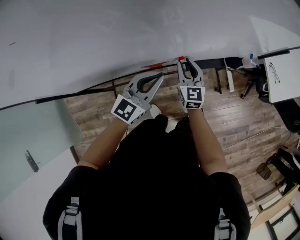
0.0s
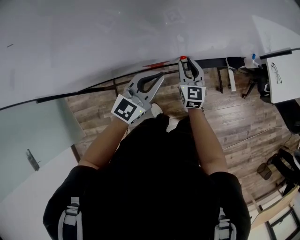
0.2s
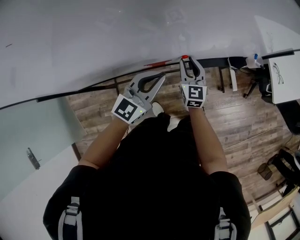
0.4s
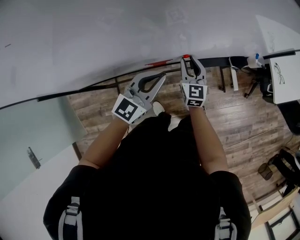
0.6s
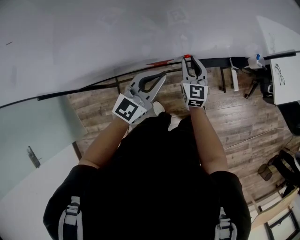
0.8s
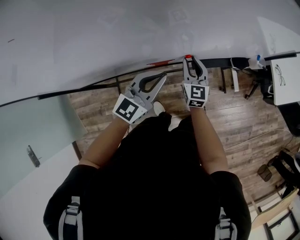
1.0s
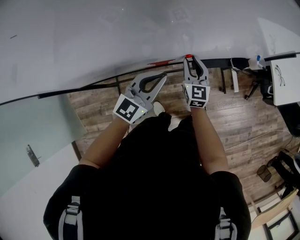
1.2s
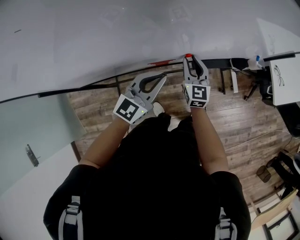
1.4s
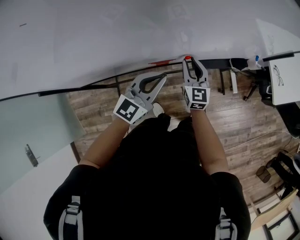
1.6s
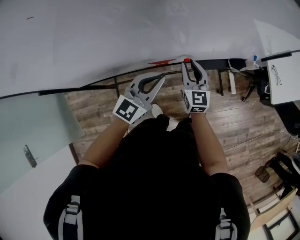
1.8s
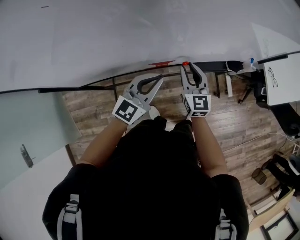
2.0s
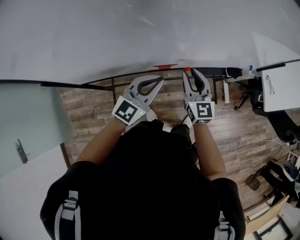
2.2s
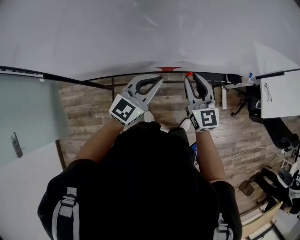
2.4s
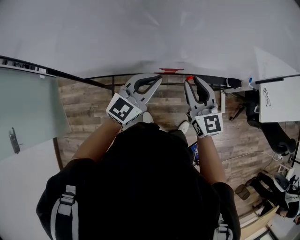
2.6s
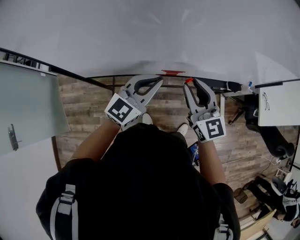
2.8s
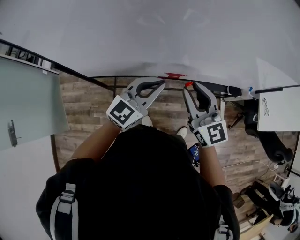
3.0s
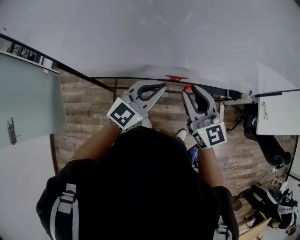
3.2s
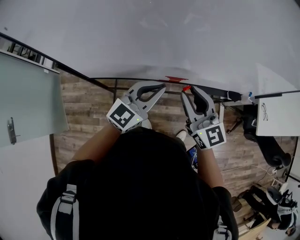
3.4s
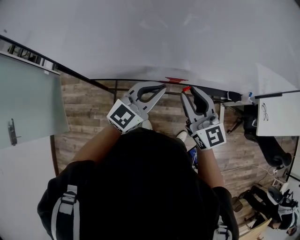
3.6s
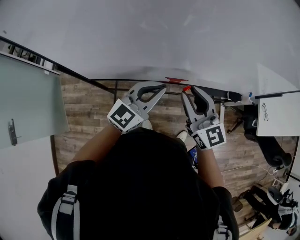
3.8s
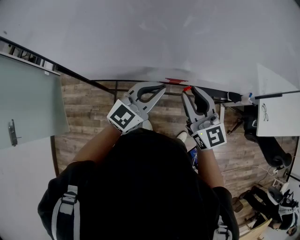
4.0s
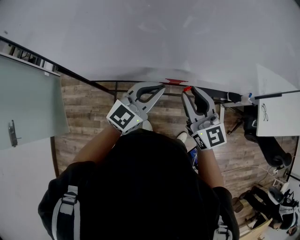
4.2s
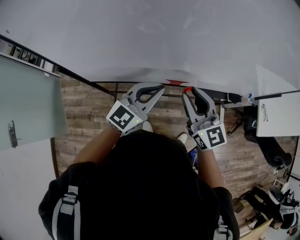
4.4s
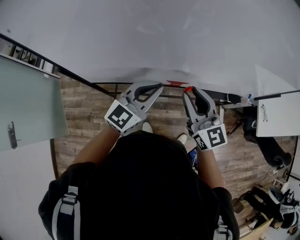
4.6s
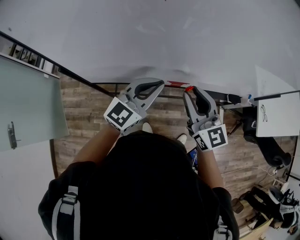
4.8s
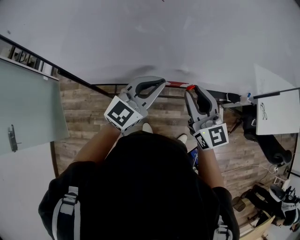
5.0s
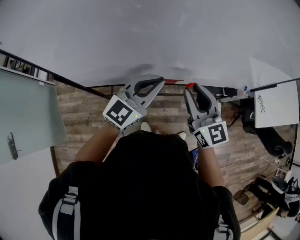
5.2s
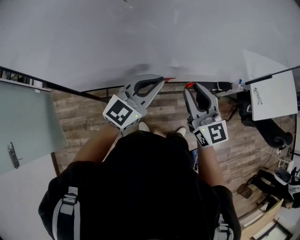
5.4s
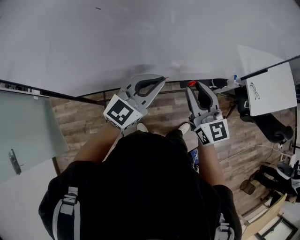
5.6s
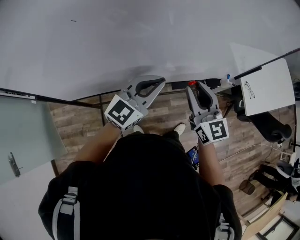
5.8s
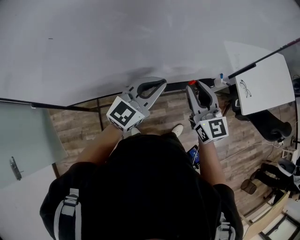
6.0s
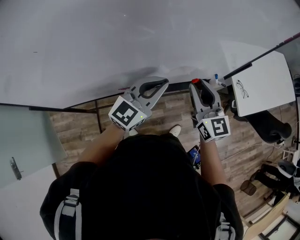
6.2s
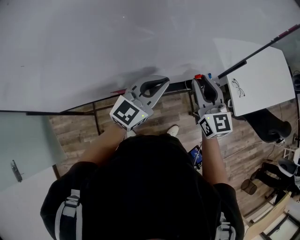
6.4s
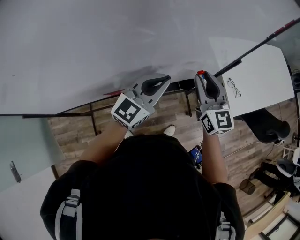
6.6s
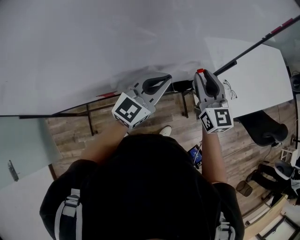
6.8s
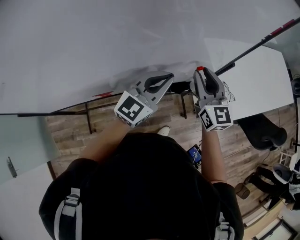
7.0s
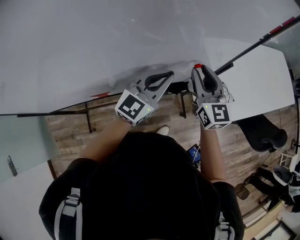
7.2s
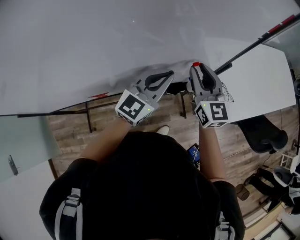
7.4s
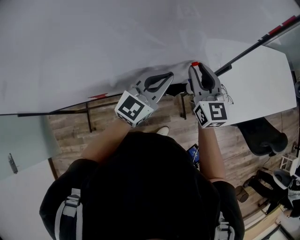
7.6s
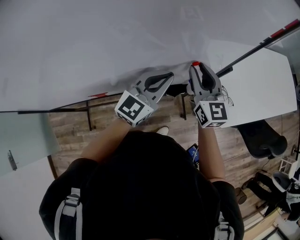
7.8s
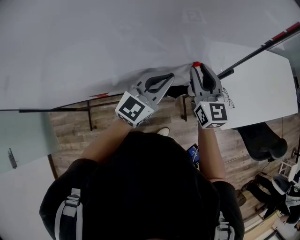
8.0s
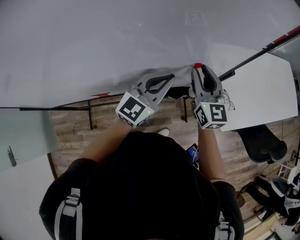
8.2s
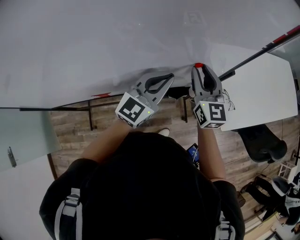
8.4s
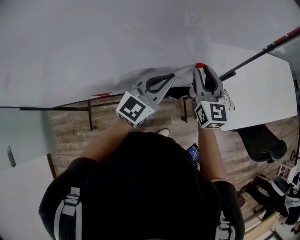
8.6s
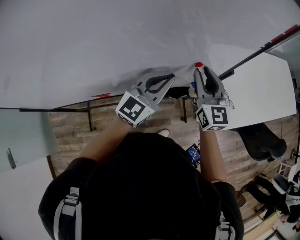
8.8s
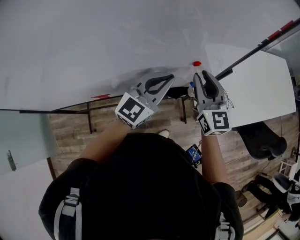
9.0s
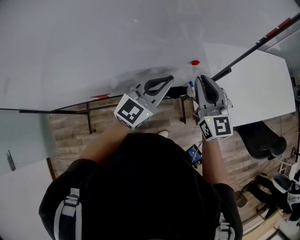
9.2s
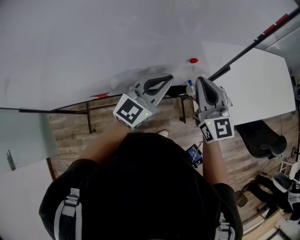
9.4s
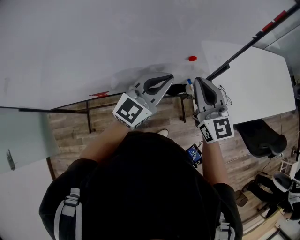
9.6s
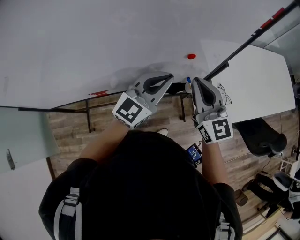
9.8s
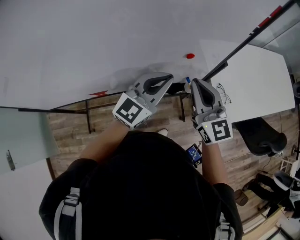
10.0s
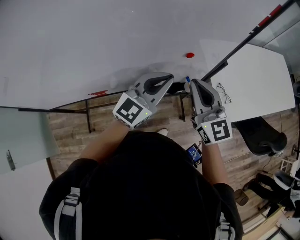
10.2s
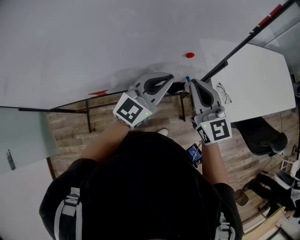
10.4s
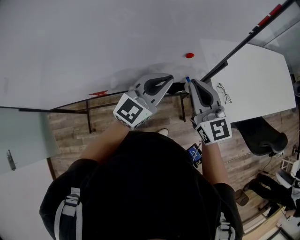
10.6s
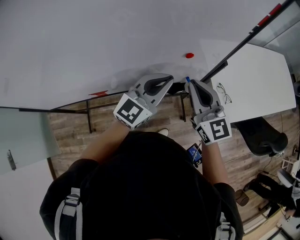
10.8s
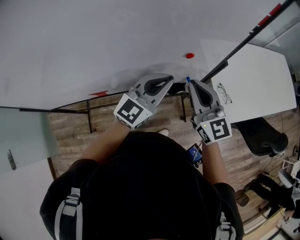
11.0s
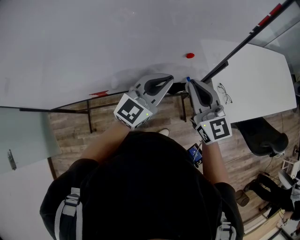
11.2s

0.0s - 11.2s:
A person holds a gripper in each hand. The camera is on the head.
0.0s - 1.6s: The grippers stay close to where they were, moving slightly.
1.6s - 3.2s: The left gripper shifts approximately 15 cm upward, to the left and backward. The right gripper goes some 25 cm upward, backward and to the left, and changes its angle by some 30 degrees.
3.2s - 4.8s: There are only small adjustments of the grippers.
4.8s - 6.4s: The right gripper goes about 35 cm to the right and forward, and rotates about 20 degrees; the left gripper goes roughly 30 cm to the right.
6.4s - 8.0s: The right gripper shifts about 20 cm forward and to the right. Meanwhile the left gripper moves to the right and forward, about 20 cm.
8.0s - 9.6s: The right gripper heads backward, covering some 10 cm, and closes.
9.6s - 11.2s: The grippers stay close to where they were, moving slightly.

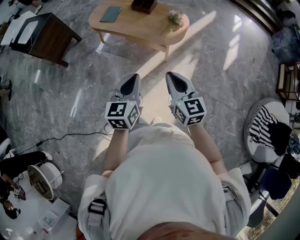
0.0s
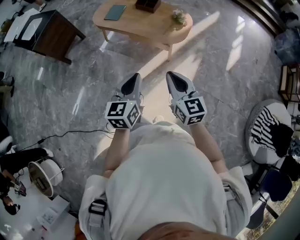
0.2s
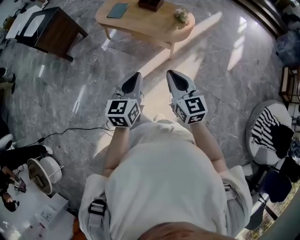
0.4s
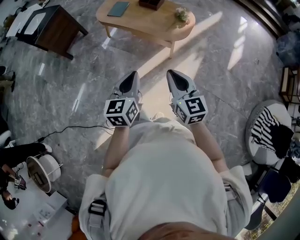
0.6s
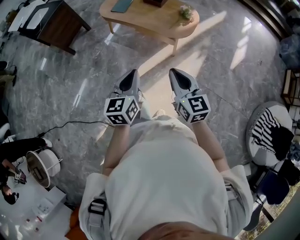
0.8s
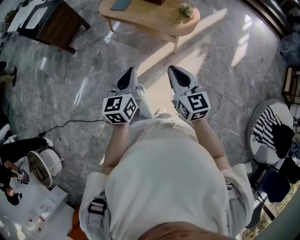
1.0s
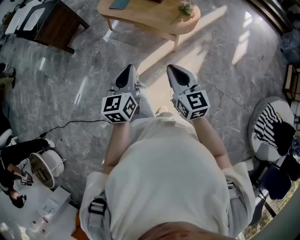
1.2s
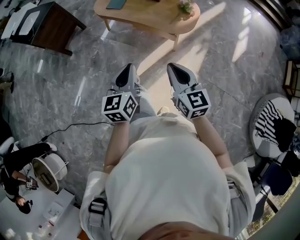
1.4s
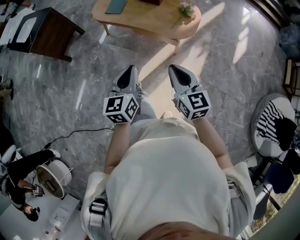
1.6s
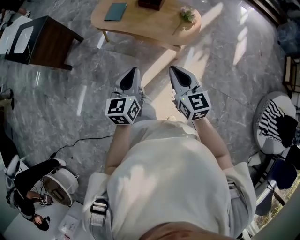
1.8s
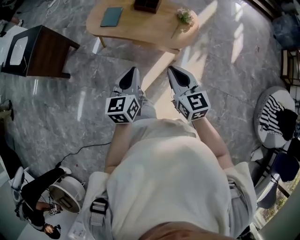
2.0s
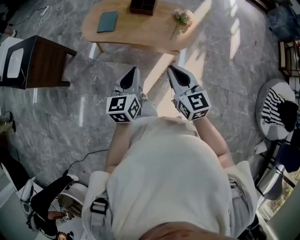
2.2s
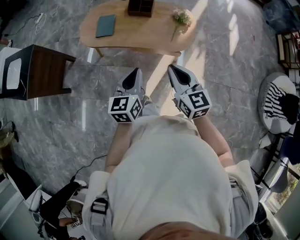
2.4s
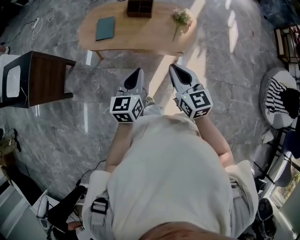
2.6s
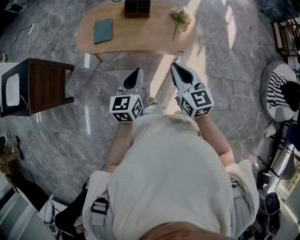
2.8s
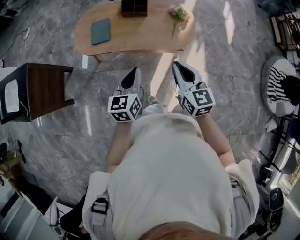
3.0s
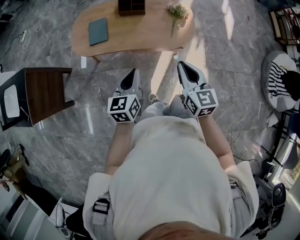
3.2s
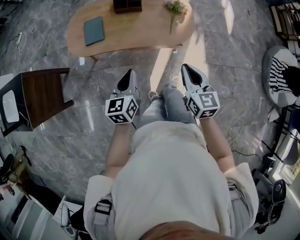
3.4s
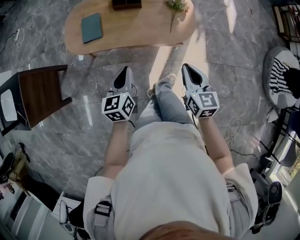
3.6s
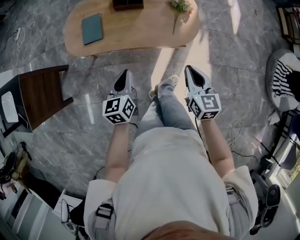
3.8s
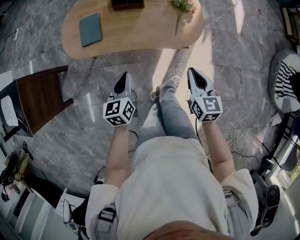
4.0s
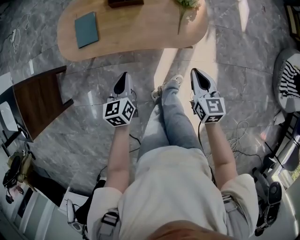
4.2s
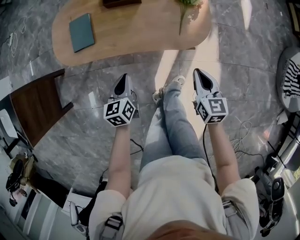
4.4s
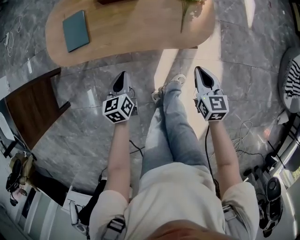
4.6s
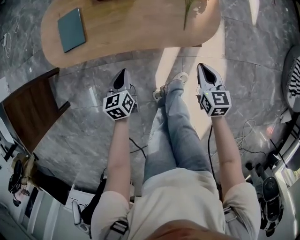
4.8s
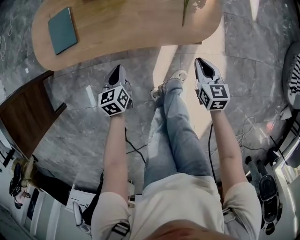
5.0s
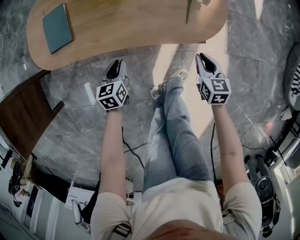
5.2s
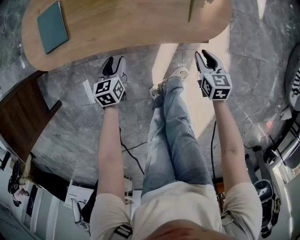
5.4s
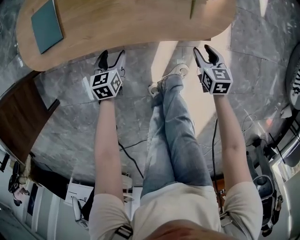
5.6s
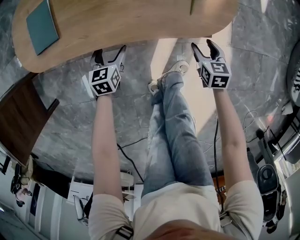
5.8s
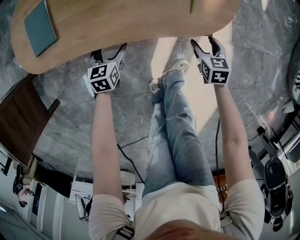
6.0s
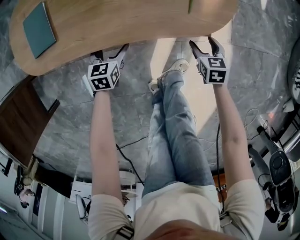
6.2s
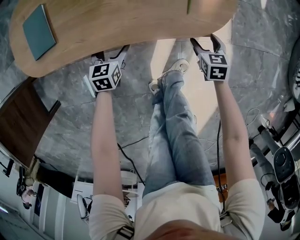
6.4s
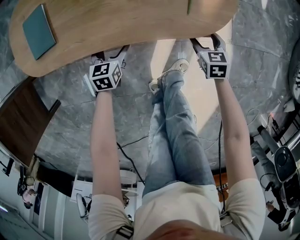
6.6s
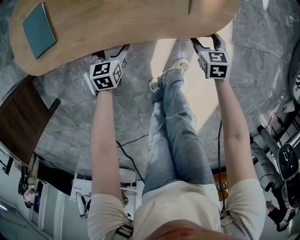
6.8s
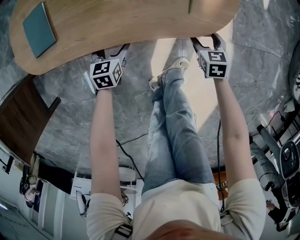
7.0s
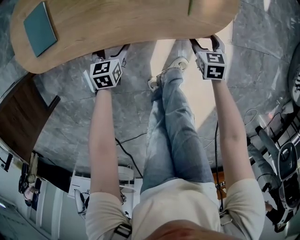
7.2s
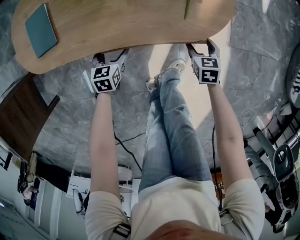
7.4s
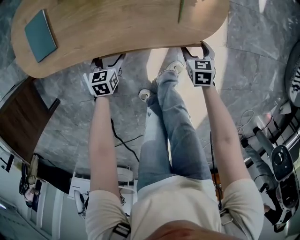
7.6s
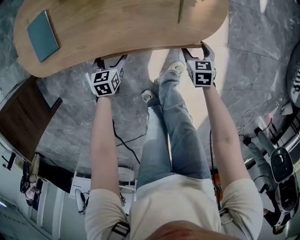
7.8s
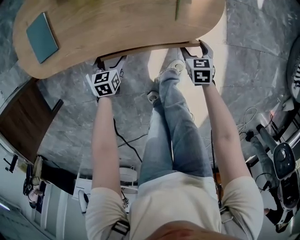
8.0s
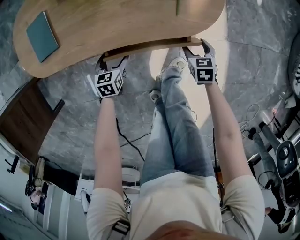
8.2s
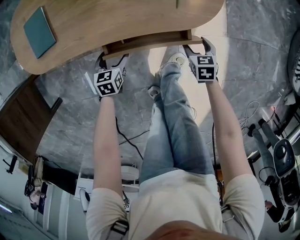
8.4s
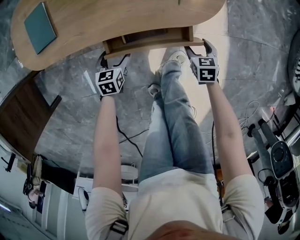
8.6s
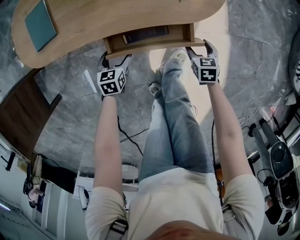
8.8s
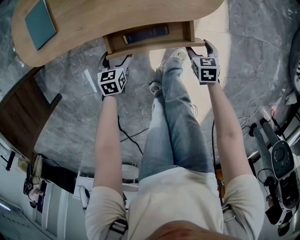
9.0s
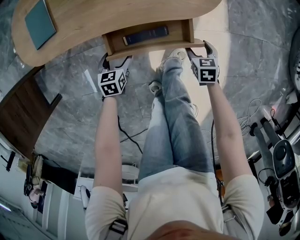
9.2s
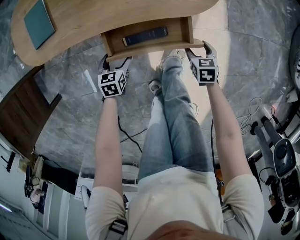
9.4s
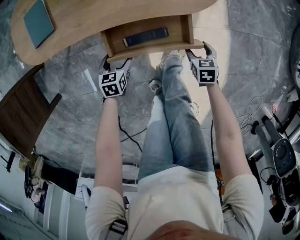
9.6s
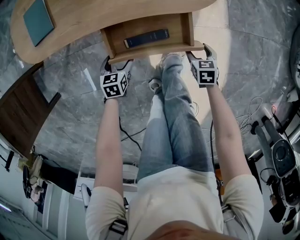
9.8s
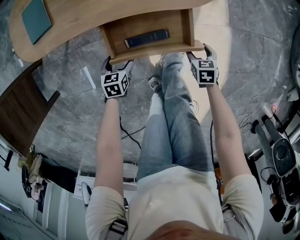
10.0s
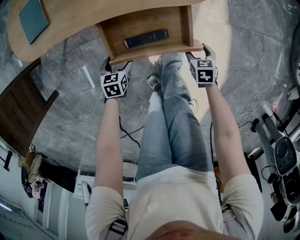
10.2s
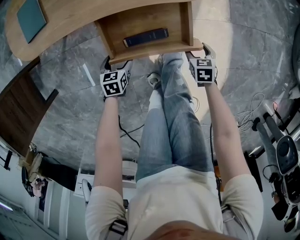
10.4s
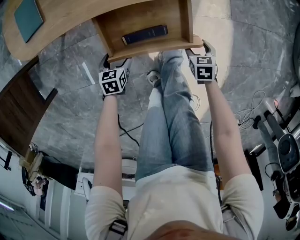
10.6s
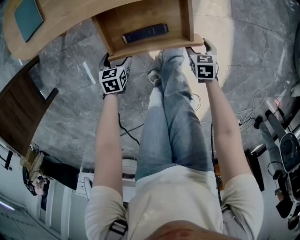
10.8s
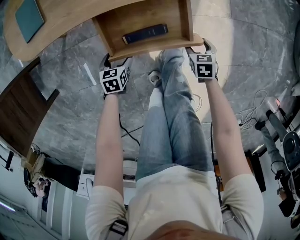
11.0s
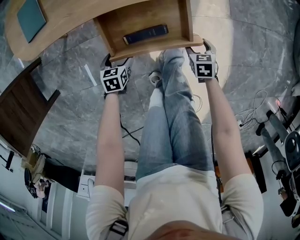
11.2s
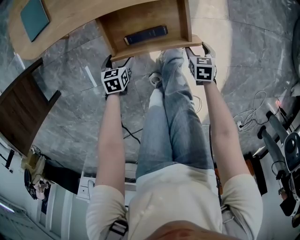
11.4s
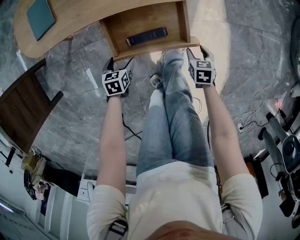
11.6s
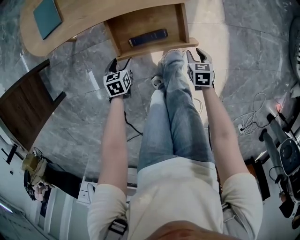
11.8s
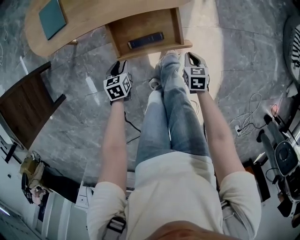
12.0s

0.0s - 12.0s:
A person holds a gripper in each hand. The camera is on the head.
0.0s - 1.6s: The grippers both shift to the left and forward by approximately 10 cm.
1.6s - 3.0s: Both grippers move forward and to the left, roughly 25 cm. The right gripper swivels some 20 degrees; the left gripper swivels about 30 degrees.
3.0s - 4.4s: The grippers both shift downward and forward by approximately 25 cm. The right gripper swivels about 20 degrees.
4.4s - 6.0s: Both grippers move downward, some 30 cm. The left gripper opens up. The right gripper opens up.
6.0s - 7.6s: The grippers move only a little.
7.6s - 9.0s: Both grippers move backward, about 10 cm.
9.0s - 10.4s: The grippers both shift backward by some 10 cm.
10.4s - 12.0s: The two grippers go roughly 10 cm upward. The right gripper closes; the left gripper closes.

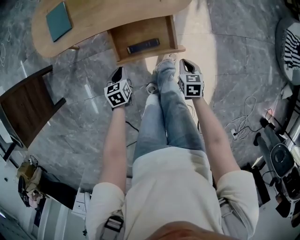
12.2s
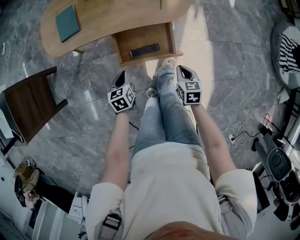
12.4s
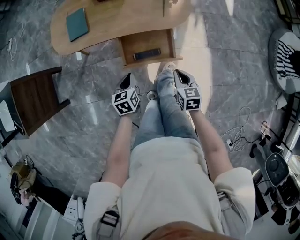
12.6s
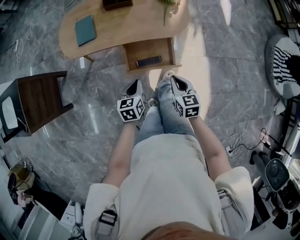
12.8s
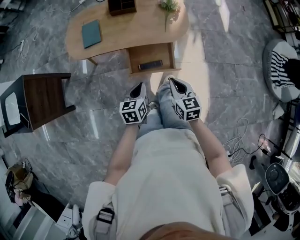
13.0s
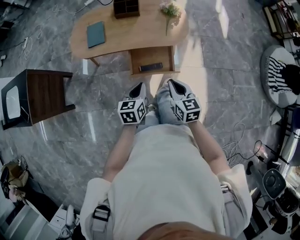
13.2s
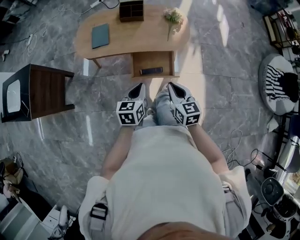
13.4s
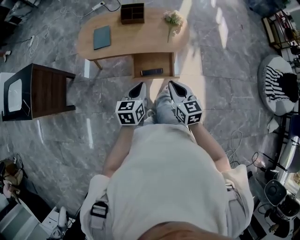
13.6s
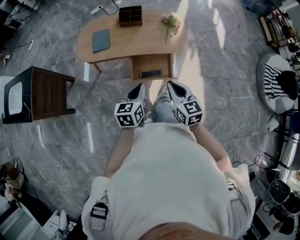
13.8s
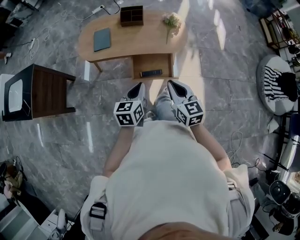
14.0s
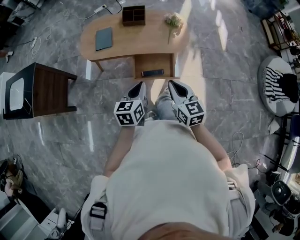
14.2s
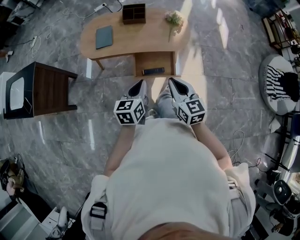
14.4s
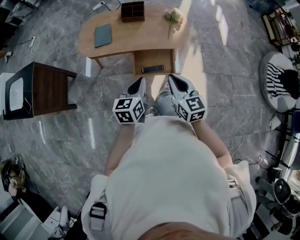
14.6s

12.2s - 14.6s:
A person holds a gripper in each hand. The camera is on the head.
12.2s - 13.4s: The grippers both shift upward by about 35 cm. The left gripper changes its angle by roughly 20 degrees, while the right gripper tilts its fingers approximately 30 degrees upward.
13.4s - 14.6s: Both grippers travel together upward, roughly 5 cm.
